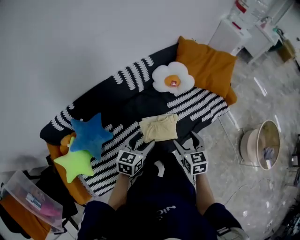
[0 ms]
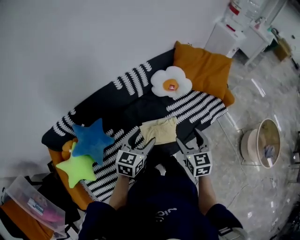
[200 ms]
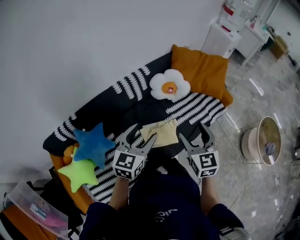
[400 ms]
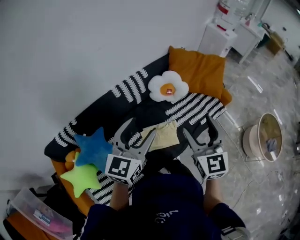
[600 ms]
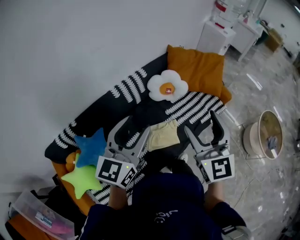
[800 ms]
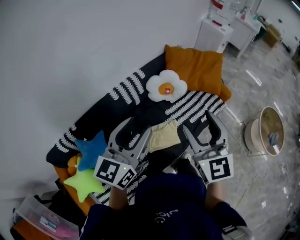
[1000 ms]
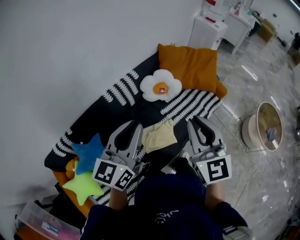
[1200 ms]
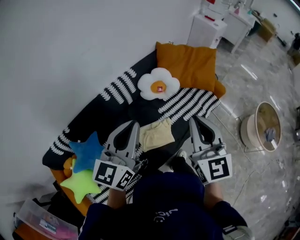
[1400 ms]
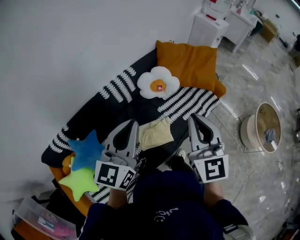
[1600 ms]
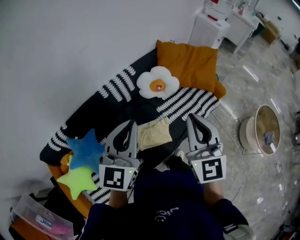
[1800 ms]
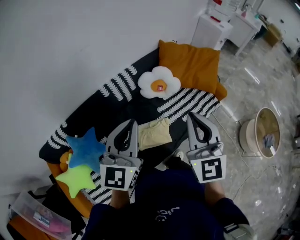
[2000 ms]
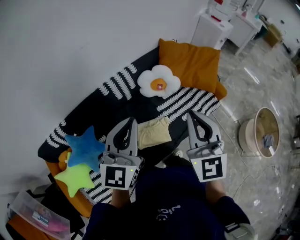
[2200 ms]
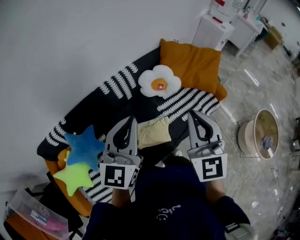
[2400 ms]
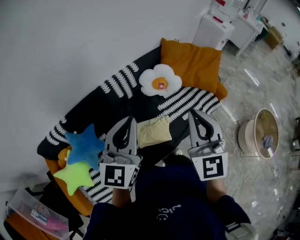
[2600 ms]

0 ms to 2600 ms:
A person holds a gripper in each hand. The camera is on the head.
0 ms to 1200 ms: The two grippers go about 25 cm upward. The left gripper swivels approximately 30 degrees, and closes up; the right gripper angles its fingers upward, by roughly 30 degrees, and closes up.
1200 ms to 2600 ms: The grippers move only a little.

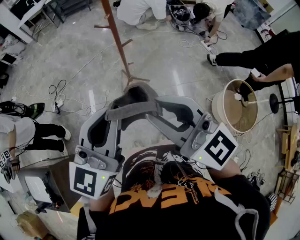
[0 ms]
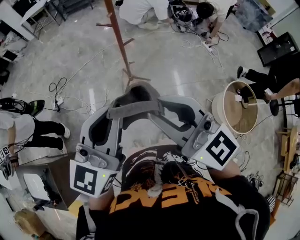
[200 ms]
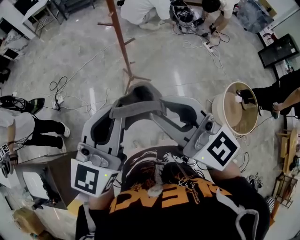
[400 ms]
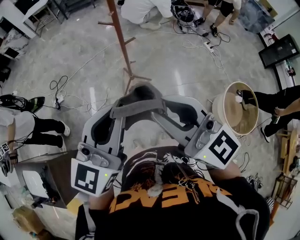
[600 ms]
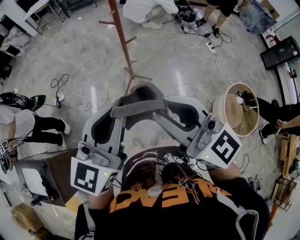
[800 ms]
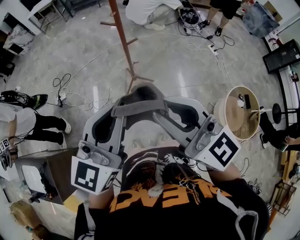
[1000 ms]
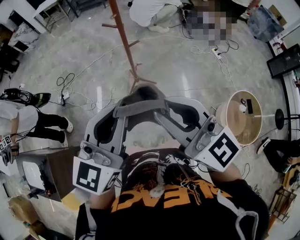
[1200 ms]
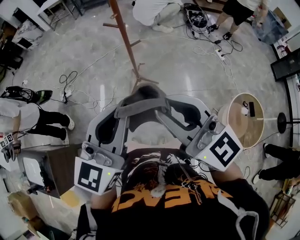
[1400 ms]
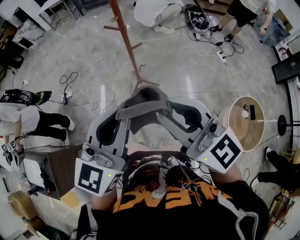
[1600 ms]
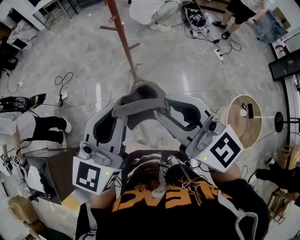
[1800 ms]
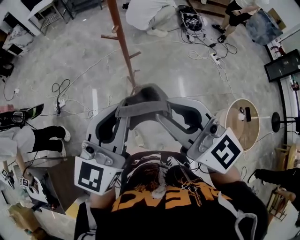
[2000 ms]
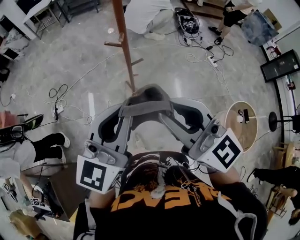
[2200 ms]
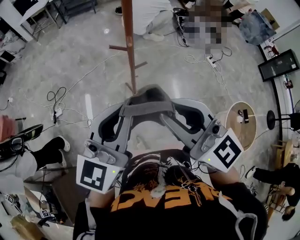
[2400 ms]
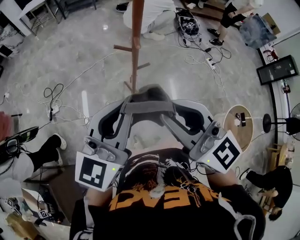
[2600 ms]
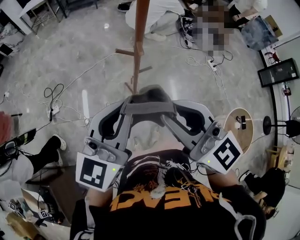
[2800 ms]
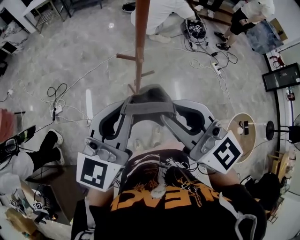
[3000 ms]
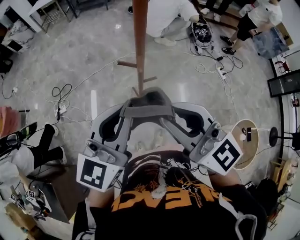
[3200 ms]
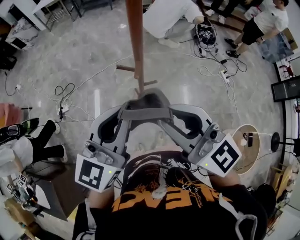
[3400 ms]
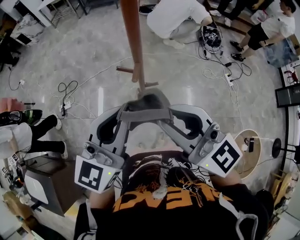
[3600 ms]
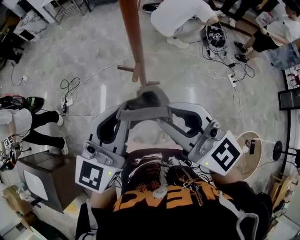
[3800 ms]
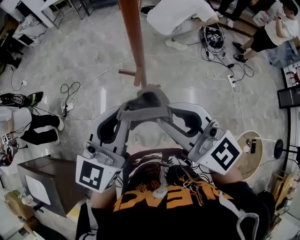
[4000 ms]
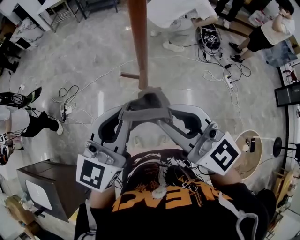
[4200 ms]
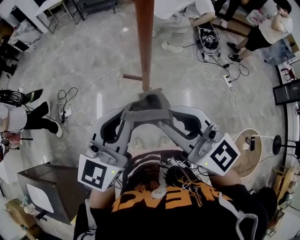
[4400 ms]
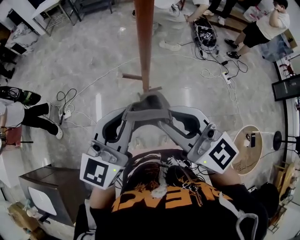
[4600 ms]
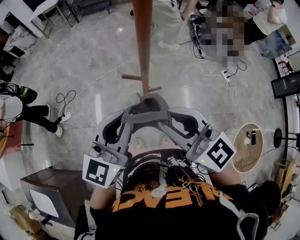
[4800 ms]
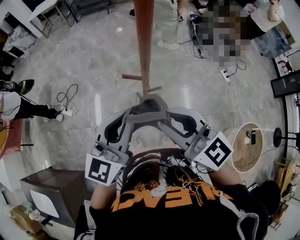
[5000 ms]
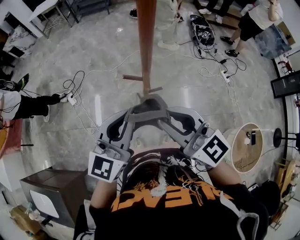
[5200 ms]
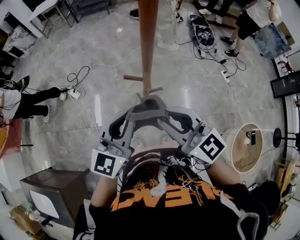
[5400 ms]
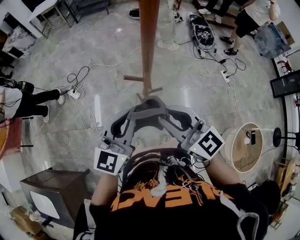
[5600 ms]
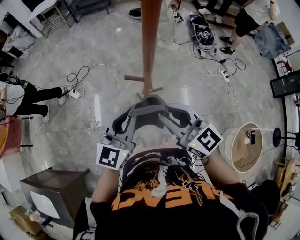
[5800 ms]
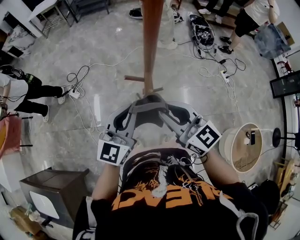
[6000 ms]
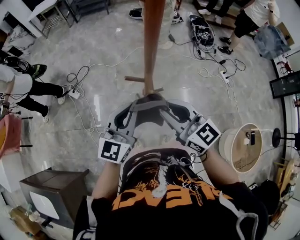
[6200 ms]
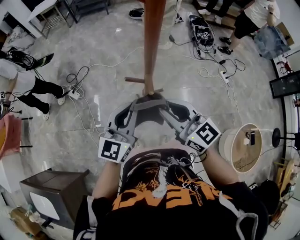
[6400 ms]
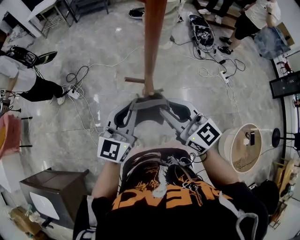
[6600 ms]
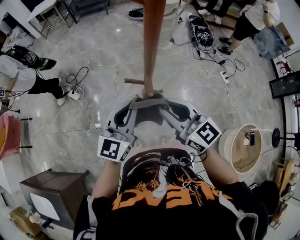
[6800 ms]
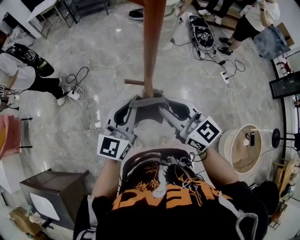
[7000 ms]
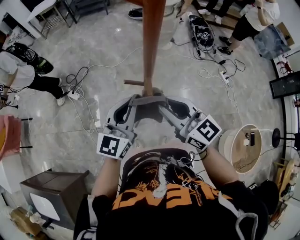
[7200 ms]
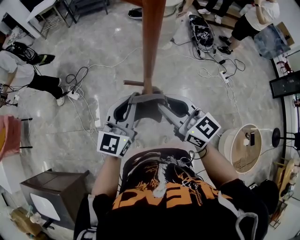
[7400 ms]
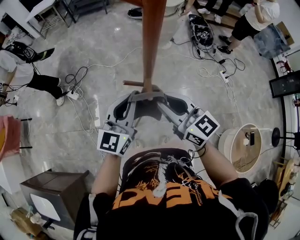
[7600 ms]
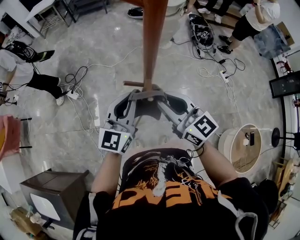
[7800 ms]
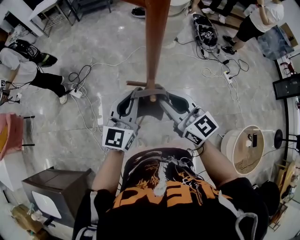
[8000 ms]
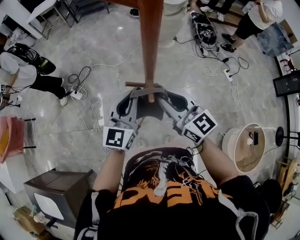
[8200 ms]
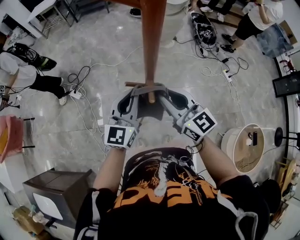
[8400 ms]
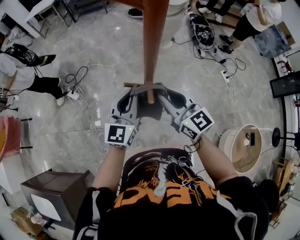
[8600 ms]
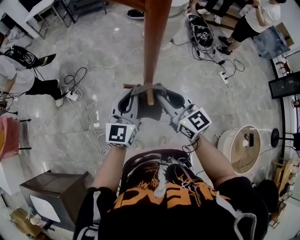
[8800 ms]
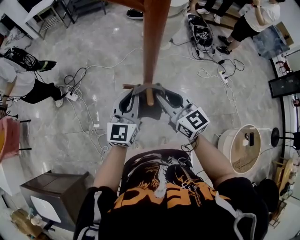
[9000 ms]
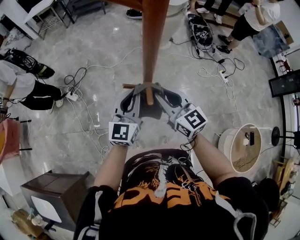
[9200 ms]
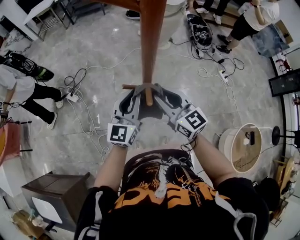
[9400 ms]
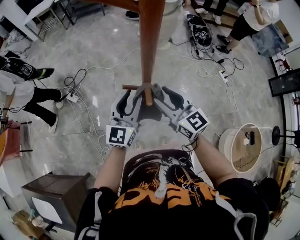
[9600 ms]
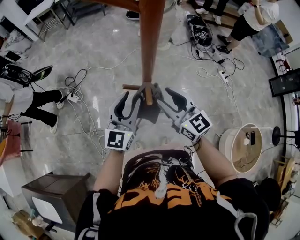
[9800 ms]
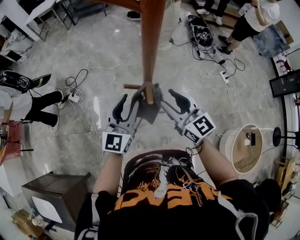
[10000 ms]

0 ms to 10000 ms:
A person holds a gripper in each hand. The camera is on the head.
0 ms to 1400 ms: The grippers both shift to the right by about 5 cm.
1400 ms to 2800 ms: The right gripper is displaced forward and to the left by about 30 cm, while the left gripper moves forward, approximately 25 cm.
2800 ms to 4200 ms: The grippers both shift forward and to the right by some 10 cm.
4200 ms to 5800 ms: Both grippers travel together downward, roughly 10 cm.
5800 ms to 7200 ms: The right gripper moves roughly 5 cm, while the left gripper is displaced forward by about 5 cm.
7200 ms to 8600 ms: The left gripper moves some 5 cm; the right gripper moves forward, approximately 5 cm.
8600 ms to 10000 ms: The left gripper opens up. Meanwhile the right gripper opens.

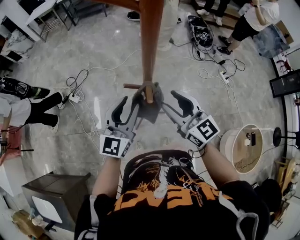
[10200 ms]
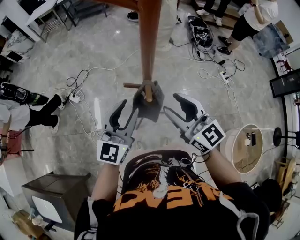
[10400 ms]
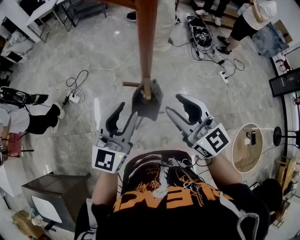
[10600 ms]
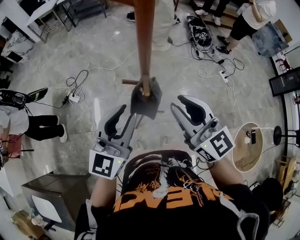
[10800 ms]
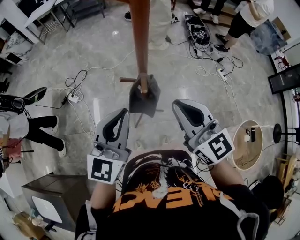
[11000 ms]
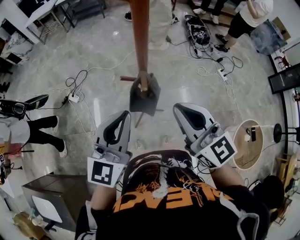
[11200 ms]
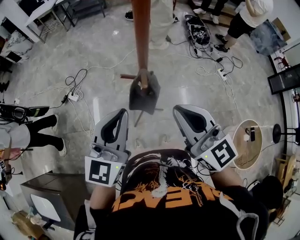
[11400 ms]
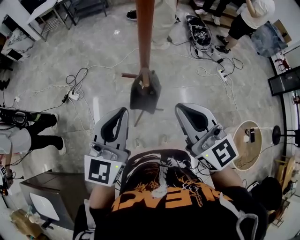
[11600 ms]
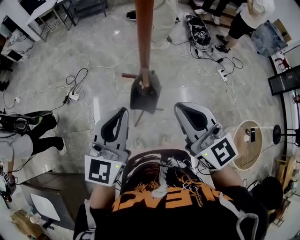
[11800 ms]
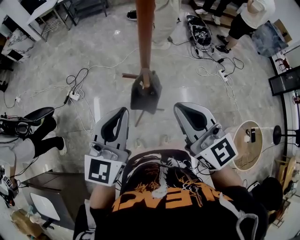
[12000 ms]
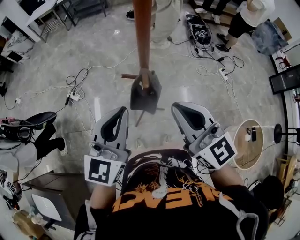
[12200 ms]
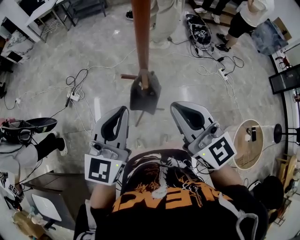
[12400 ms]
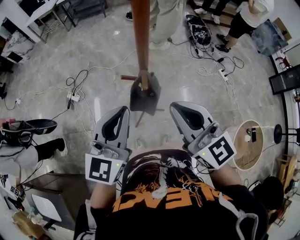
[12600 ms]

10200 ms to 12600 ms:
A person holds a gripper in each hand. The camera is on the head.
10200 ms to 11400 ms: The two grippers go approximately 15 cm upward and backward. The right gripper closes its fingers. Meanwhile the left gripper closes.
11400 ms to 12600 ms: There are only small adjustments of the grippers.

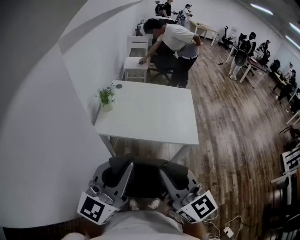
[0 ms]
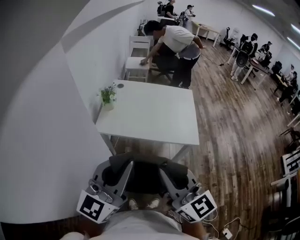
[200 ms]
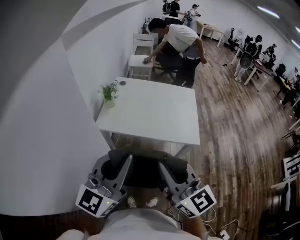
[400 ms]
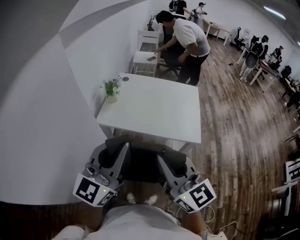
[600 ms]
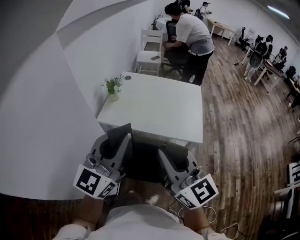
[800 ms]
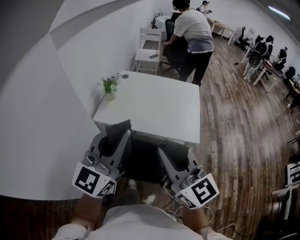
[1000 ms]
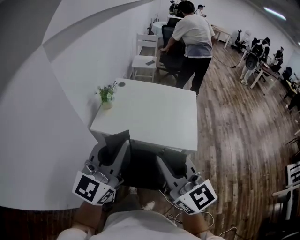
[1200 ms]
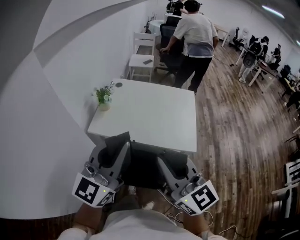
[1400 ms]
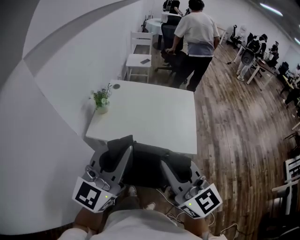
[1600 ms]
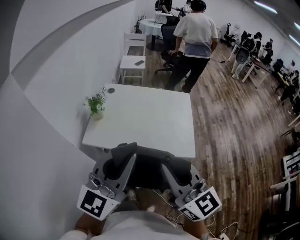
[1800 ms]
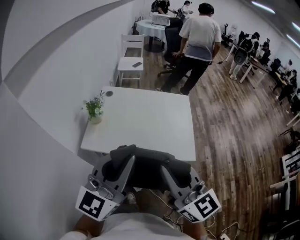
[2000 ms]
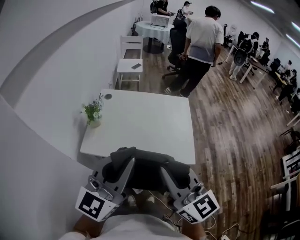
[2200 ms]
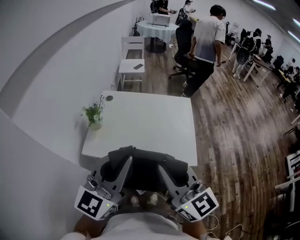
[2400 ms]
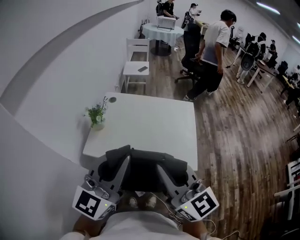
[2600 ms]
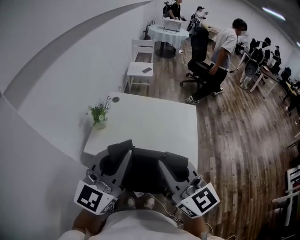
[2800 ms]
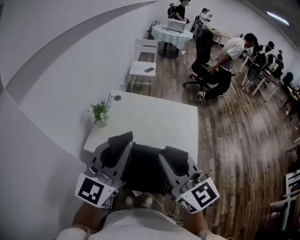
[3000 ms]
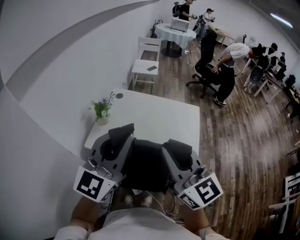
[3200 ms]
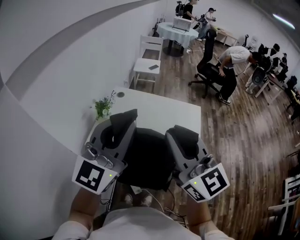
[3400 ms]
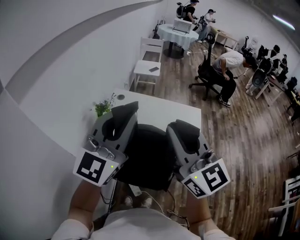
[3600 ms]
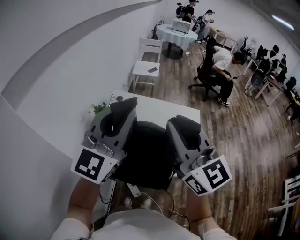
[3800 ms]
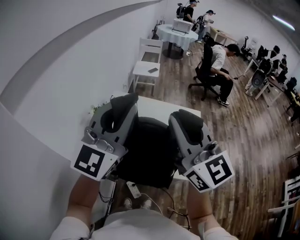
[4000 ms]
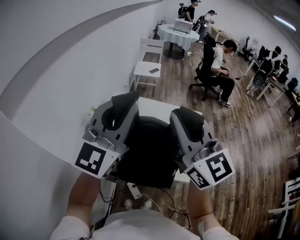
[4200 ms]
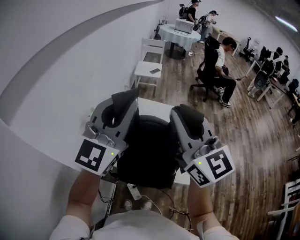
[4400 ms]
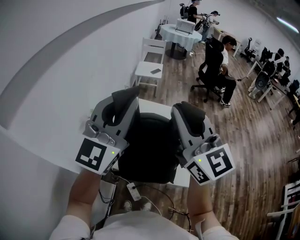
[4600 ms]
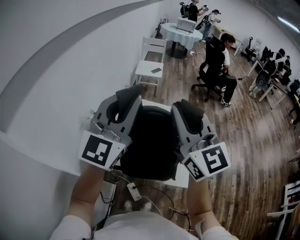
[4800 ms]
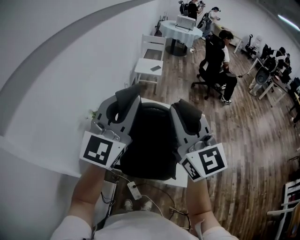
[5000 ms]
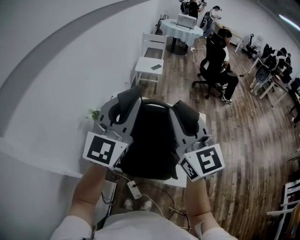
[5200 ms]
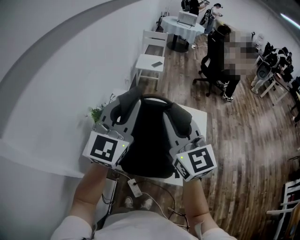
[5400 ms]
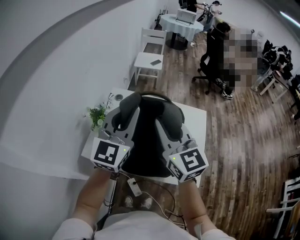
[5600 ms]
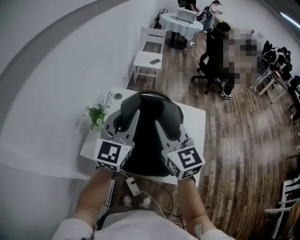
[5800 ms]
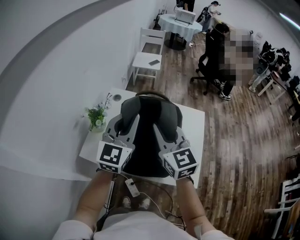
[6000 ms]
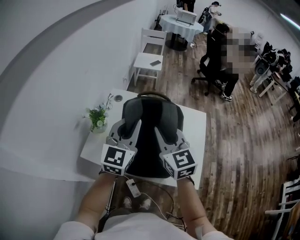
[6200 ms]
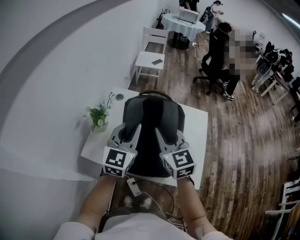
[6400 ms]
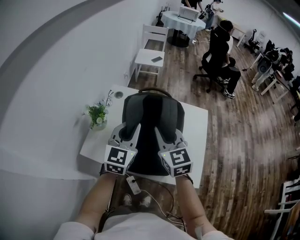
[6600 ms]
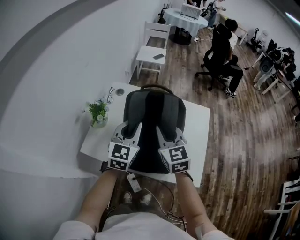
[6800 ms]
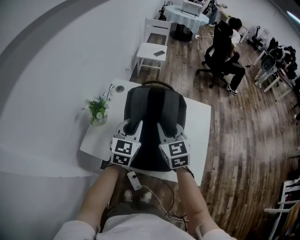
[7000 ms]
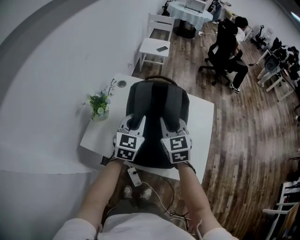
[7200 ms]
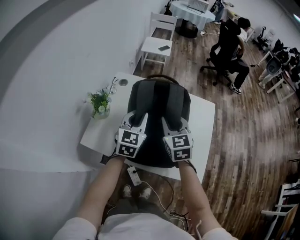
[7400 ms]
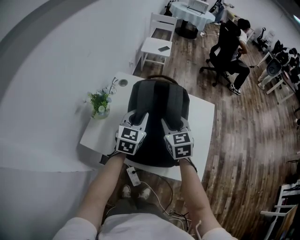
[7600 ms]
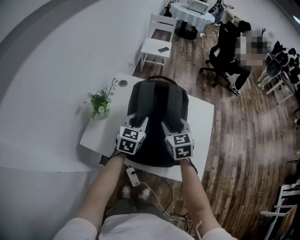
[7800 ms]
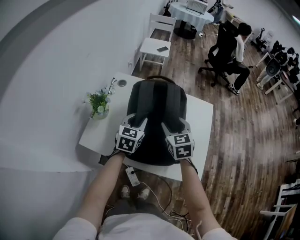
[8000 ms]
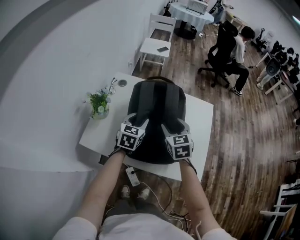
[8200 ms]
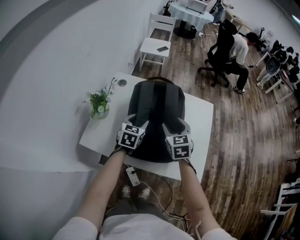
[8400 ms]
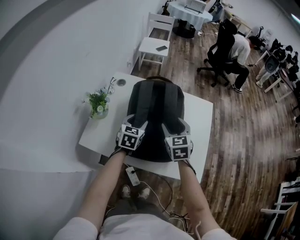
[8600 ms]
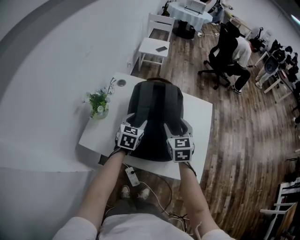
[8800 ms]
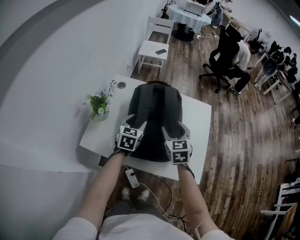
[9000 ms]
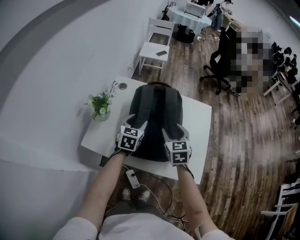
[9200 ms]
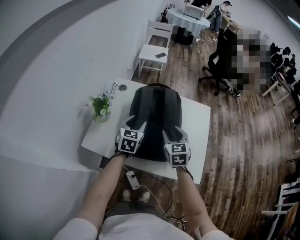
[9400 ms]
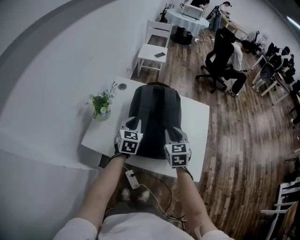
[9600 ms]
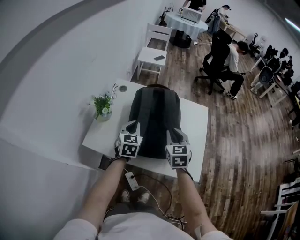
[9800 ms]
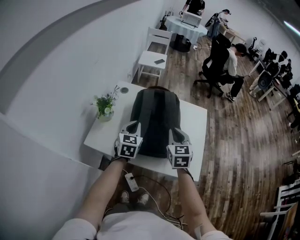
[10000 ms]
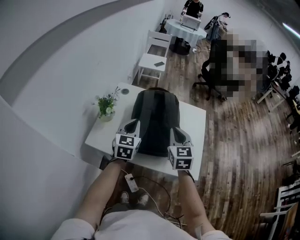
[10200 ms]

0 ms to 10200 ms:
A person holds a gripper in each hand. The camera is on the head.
0 ms to 1400 ms: The two grippers go some 15 cm forward and to the right.
1400 ms to 3000 ms: The grippers both shift forward by about 15 cm.
3000 ms to 4400 ms: The grippers both shift forward and upward by roughly 15 cm.
4400 ms to 5800 ms: Both grippers move downward and forward, some 20 cm.
5800 ms to 7200 ms: The right gripper moves downward and forward, approximately 20 cm; the left gripper heads downward, covering roughly 20 cm, and rotates approximately 20 degrees.
7200 ms to 8800 ms: The left gripper heads downward, covering some 10 cm, and opens its fingers. Meanwhile the right gripper travels downward by about 5 cm, and opens up.
8800 ms to 10200 ms: The right gripper shifts some 15 cm backward and upward, and closes, while the left gripper shifts some 20 cm upward and backward, and closes.
